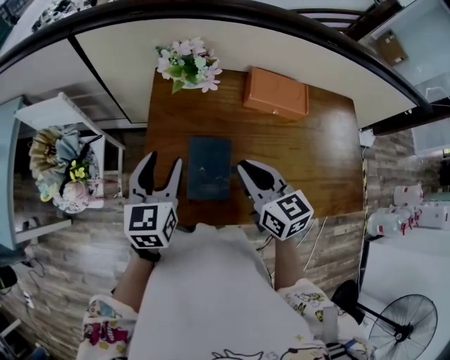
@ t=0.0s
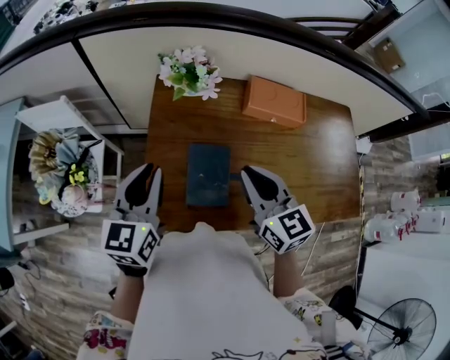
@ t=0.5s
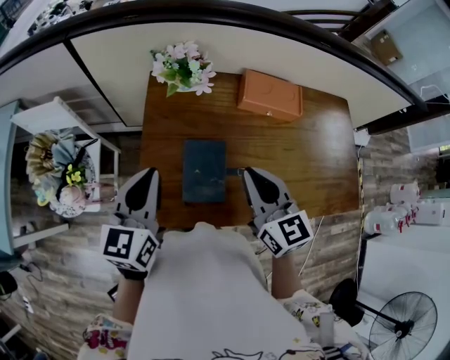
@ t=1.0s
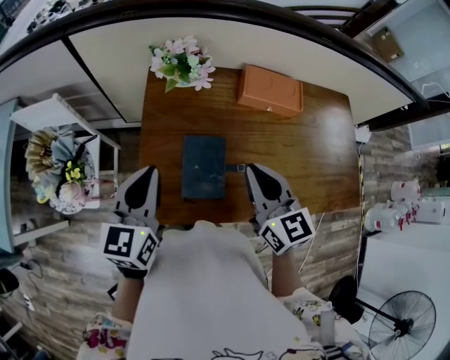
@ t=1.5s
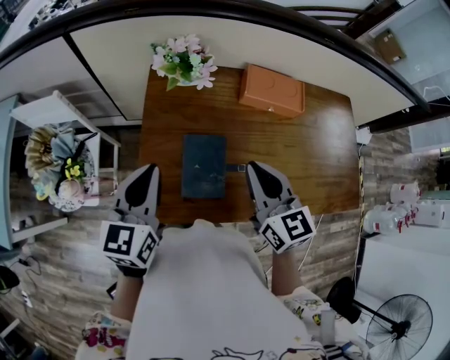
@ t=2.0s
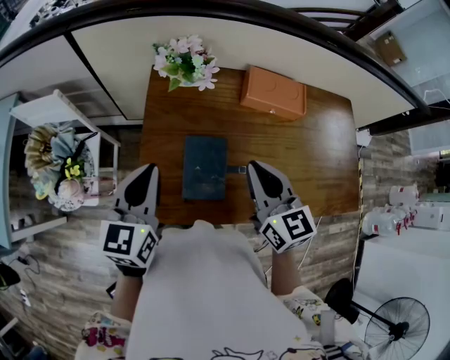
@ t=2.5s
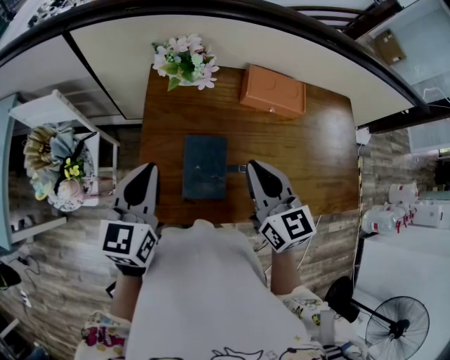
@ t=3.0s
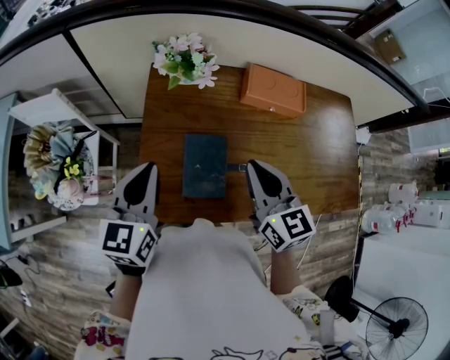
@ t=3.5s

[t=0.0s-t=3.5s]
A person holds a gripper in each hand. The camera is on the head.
t=0.0s to t=2.0s: The left gripper moves some 5 cm, and closes its fingers. Meanwhile the right gripper ends up some 5 cm from where it was.
t=2.0s to t=3.5s: Neither gripper changes place.

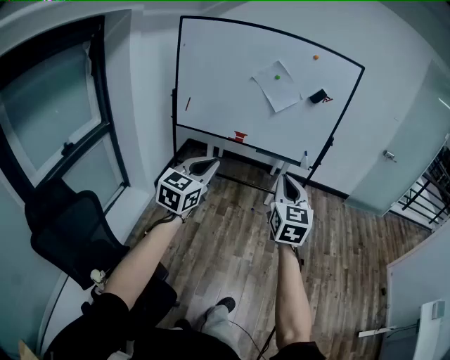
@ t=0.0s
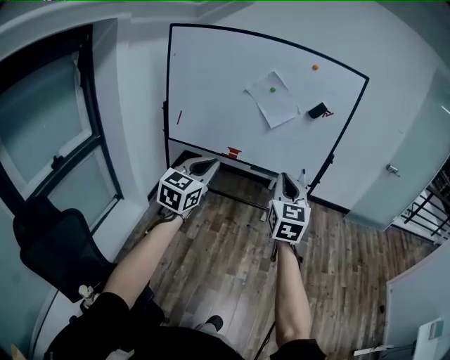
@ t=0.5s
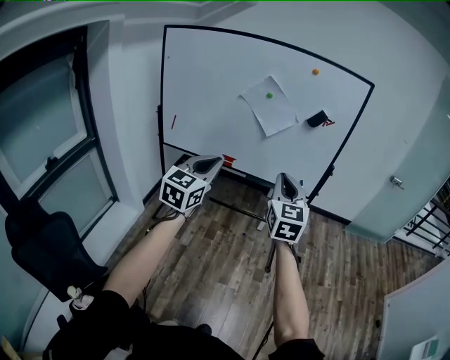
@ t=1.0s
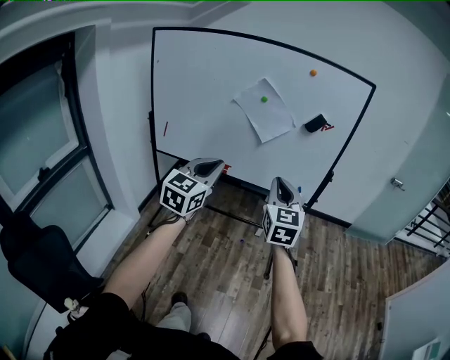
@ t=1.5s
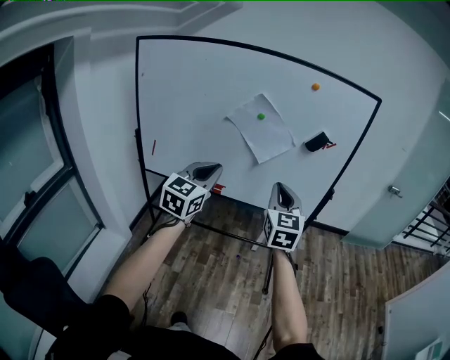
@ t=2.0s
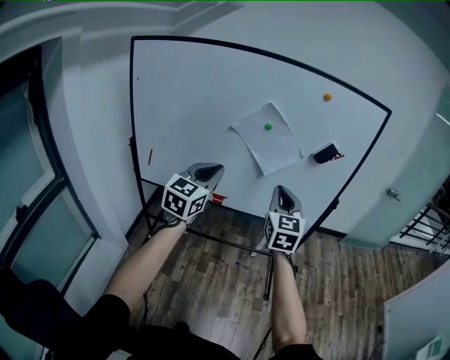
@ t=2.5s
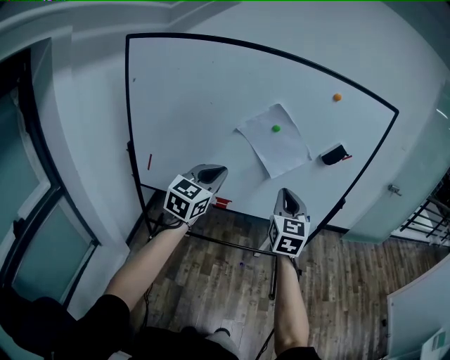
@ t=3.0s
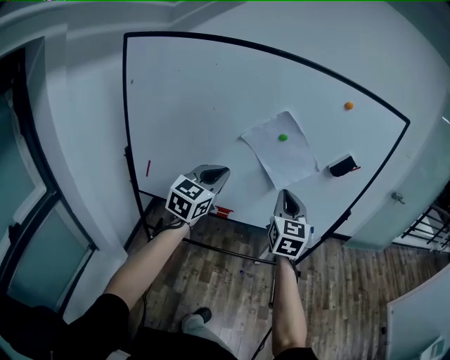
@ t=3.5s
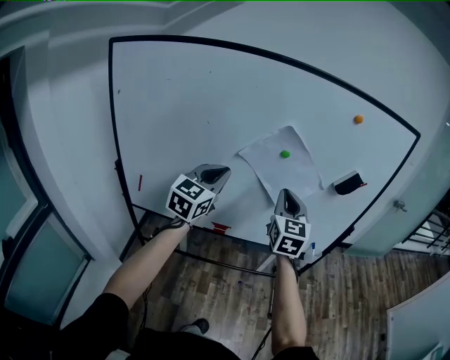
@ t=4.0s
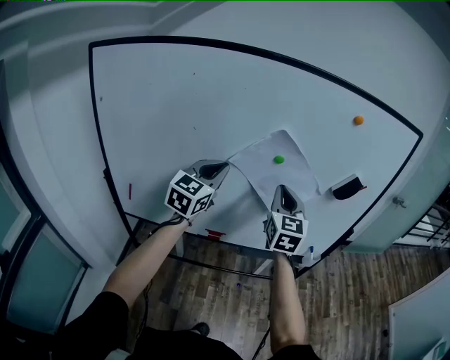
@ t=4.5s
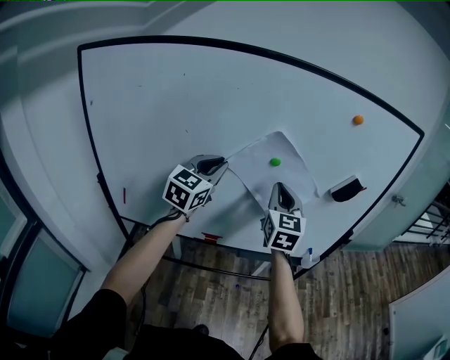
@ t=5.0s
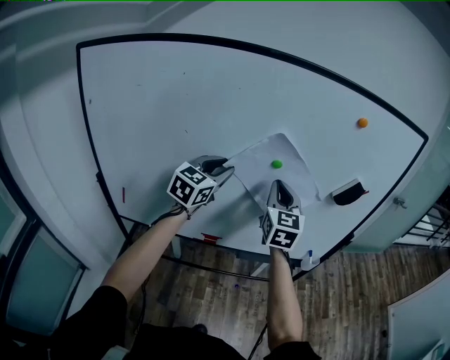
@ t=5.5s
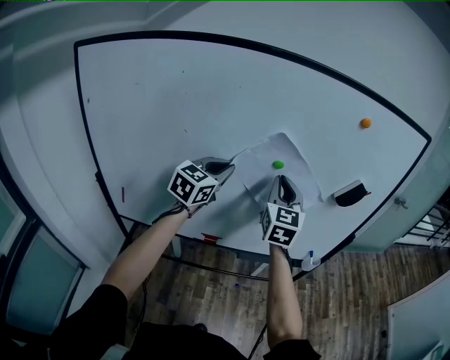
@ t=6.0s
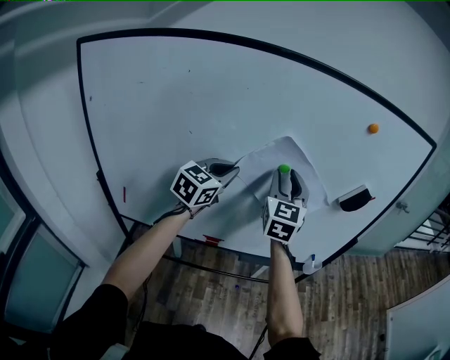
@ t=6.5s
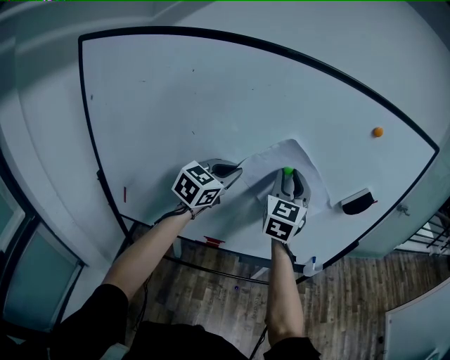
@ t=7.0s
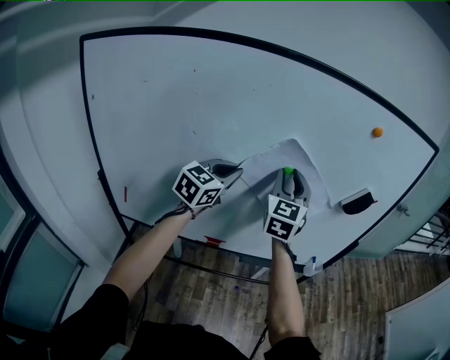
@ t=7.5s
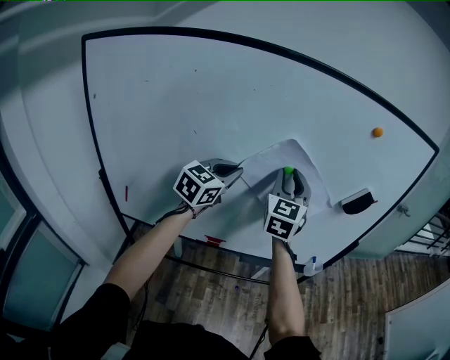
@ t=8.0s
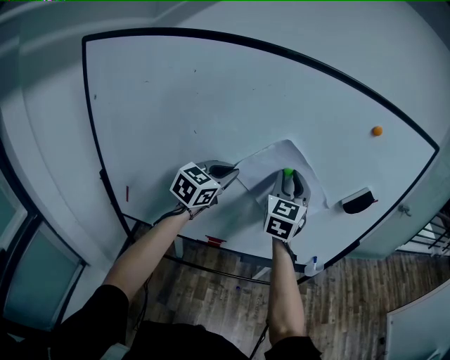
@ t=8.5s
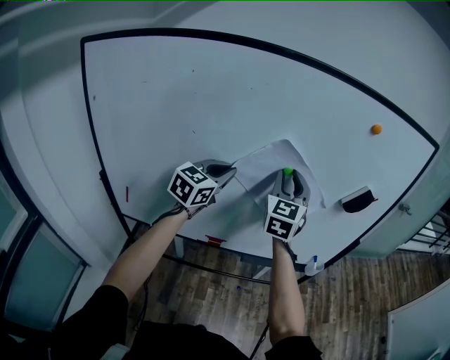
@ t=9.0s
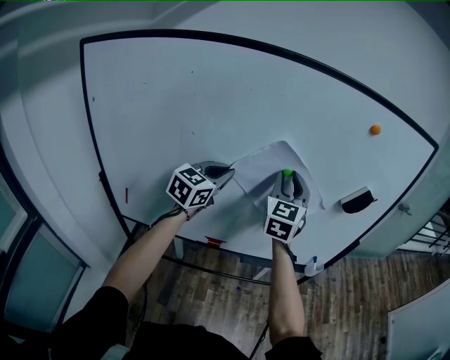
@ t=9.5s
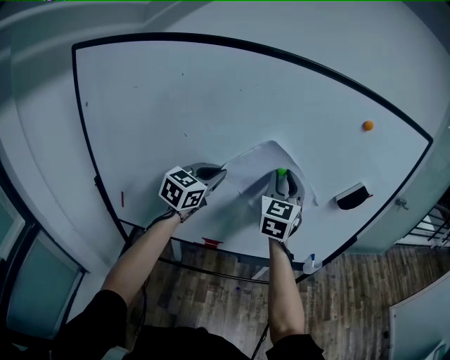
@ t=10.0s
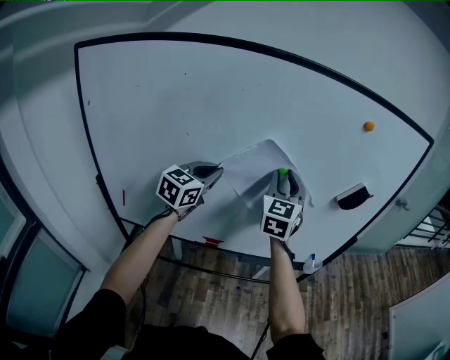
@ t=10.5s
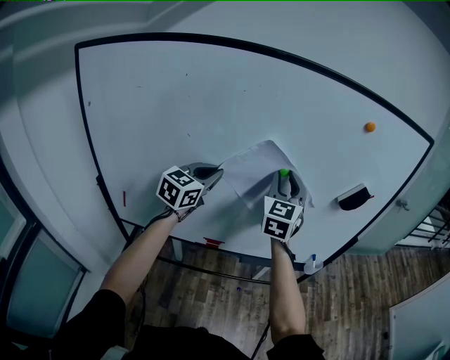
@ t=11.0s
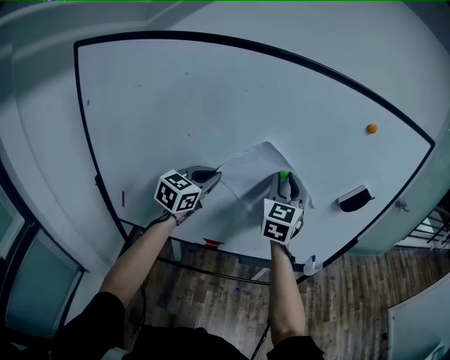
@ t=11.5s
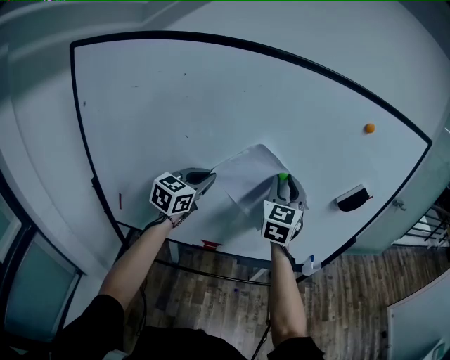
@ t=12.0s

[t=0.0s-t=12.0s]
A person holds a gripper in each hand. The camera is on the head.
t=0.0s to t=2.0s: The pair of grippers is taken forward, about 40 cm.
t=2.0s to t=4.0s: The two grippers go roughly 30 cm forward and to the left.
t=4.0s to t=6.0s: Both grippers travel together forward, about 10 cm. The left gripper opens, then closes once more.
t=6.0s to t=8.0s: The right gripper opens its fingers.
t=8.0s to t=10.0s: The grippers move only a little.
t=10.0s to t=12.0s: The grippers move only a little.

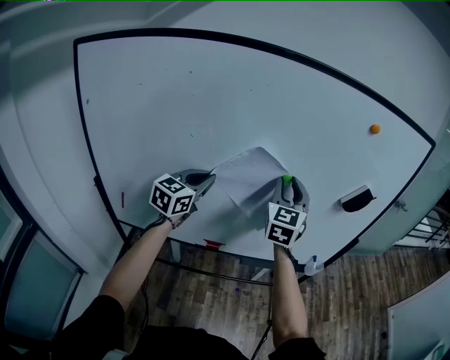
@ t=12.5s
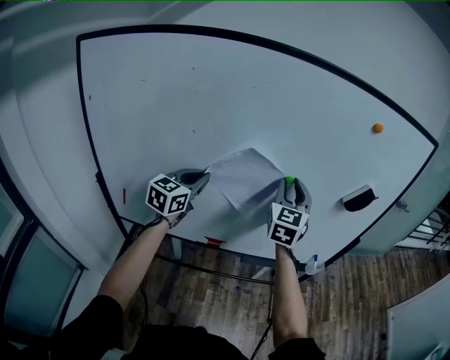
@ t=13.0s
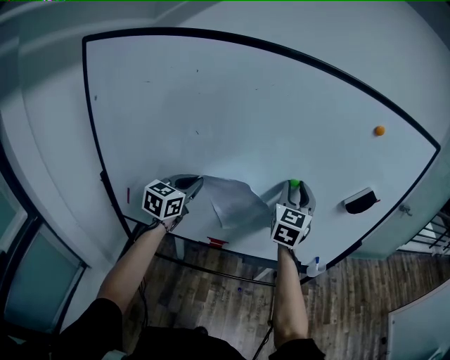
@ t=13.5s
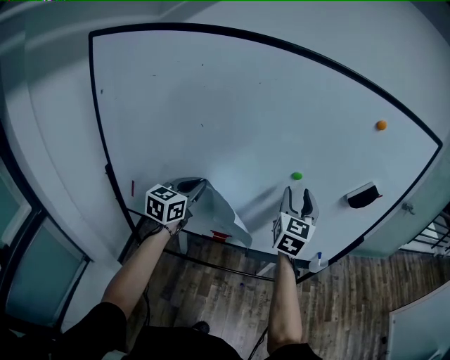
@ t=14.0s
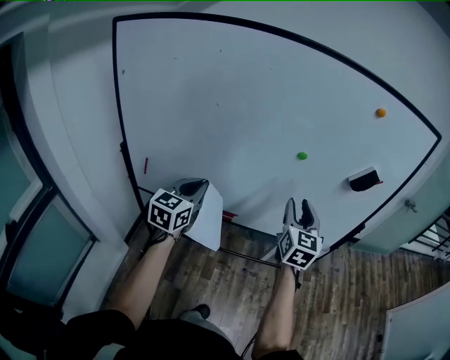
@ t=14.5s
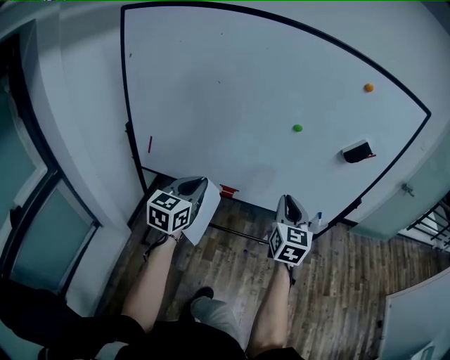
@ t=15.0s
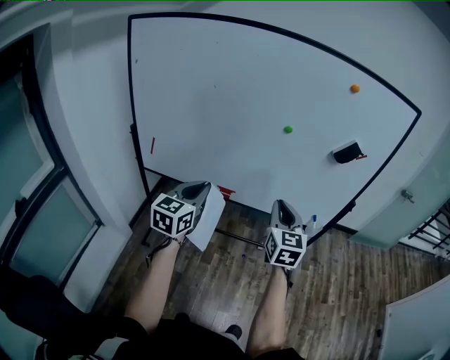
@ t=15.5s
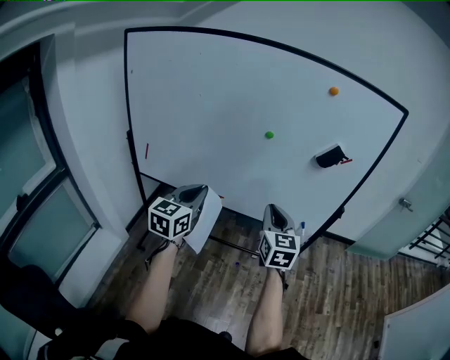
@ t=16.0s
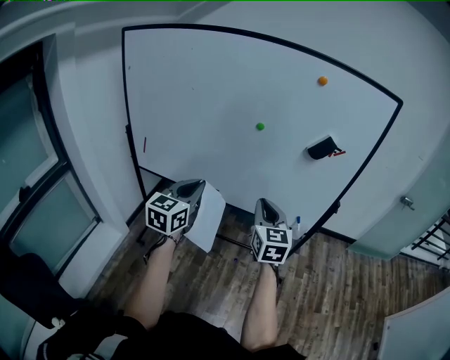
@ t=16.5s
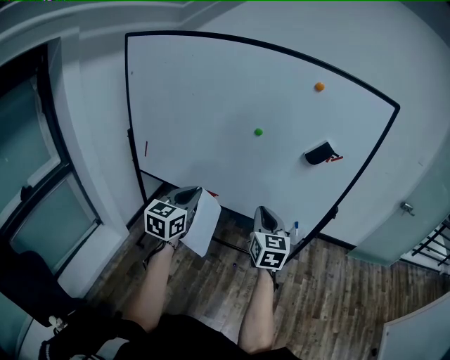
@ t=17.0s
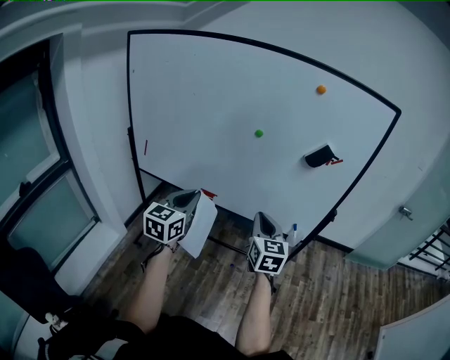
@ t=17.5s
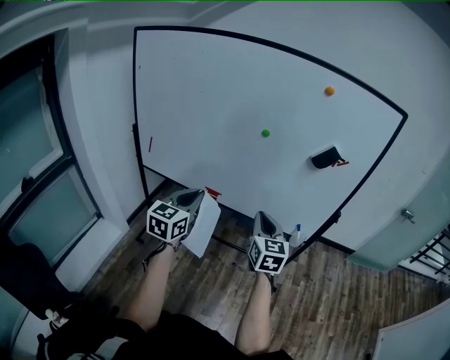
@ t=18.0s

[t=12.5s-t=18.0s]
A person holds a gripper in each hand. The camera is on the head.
t=12.5s to t=14.5s: The right gripper is displaced backward, downward and to the right by about 15 cm; the left gripper shifts some 15 cm backward.
t=14.5s to t=16.0s: The right gripper travels backward and to the right by approximately 15 cm, and closes its fingers. The left gripper heads to the right and backward, covering some 20 cm.
t=16.0s to t=18.0s: There are only small adjustments of the grippers.

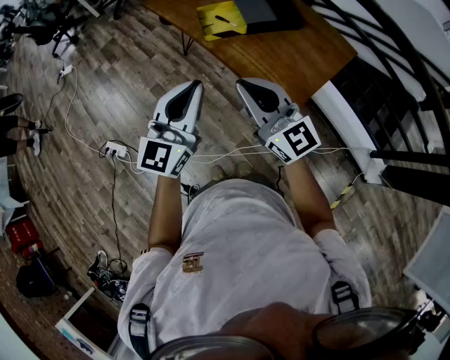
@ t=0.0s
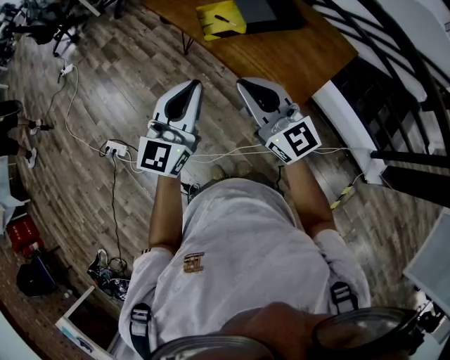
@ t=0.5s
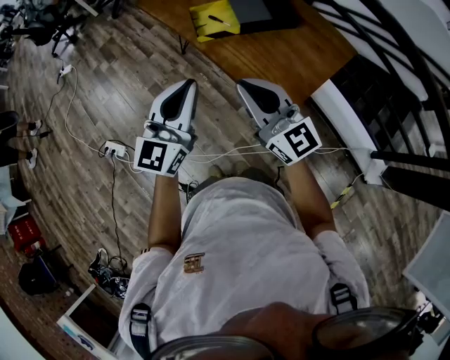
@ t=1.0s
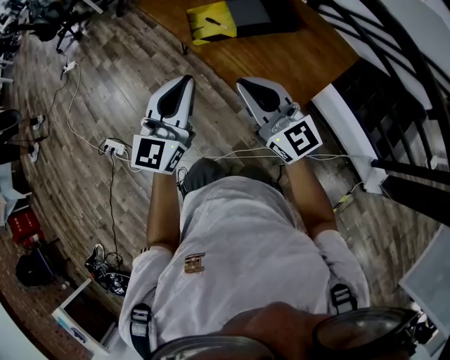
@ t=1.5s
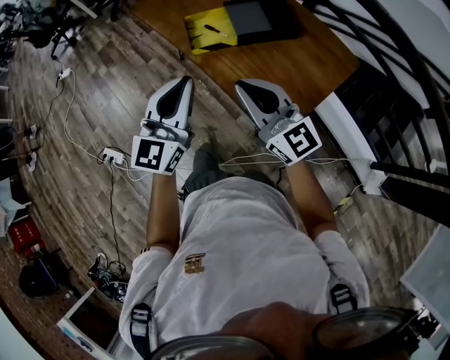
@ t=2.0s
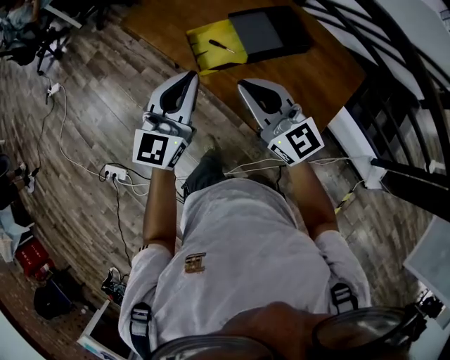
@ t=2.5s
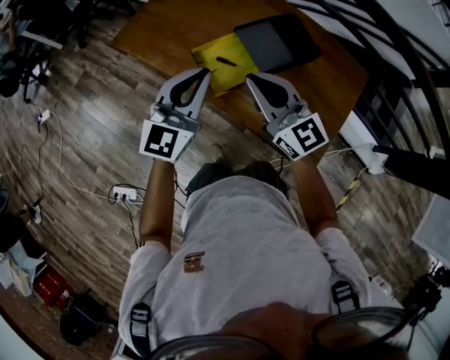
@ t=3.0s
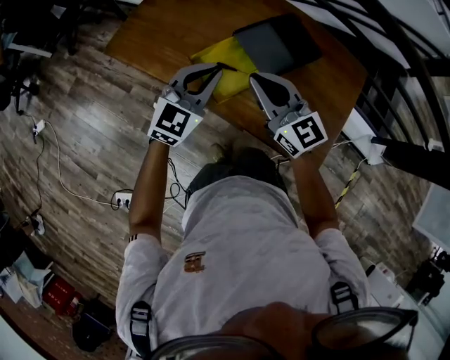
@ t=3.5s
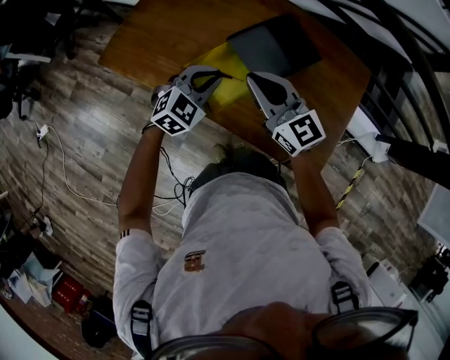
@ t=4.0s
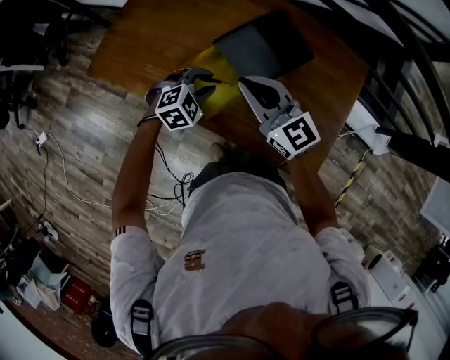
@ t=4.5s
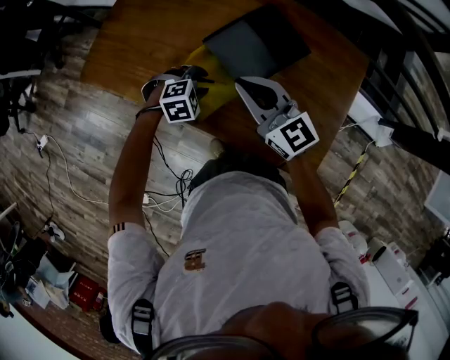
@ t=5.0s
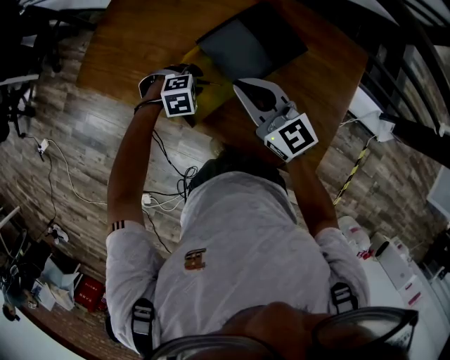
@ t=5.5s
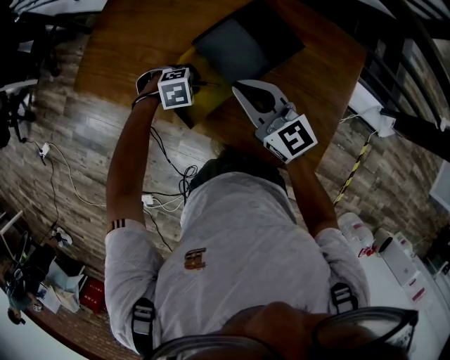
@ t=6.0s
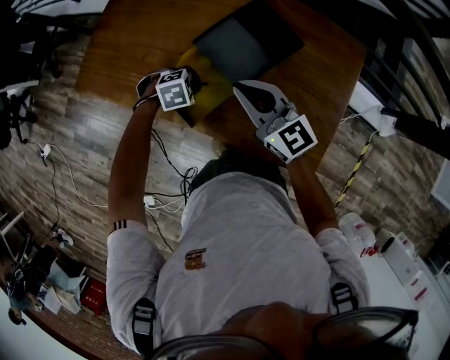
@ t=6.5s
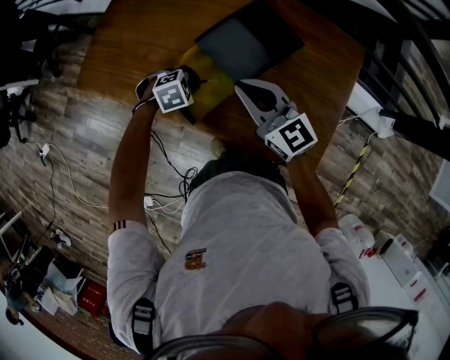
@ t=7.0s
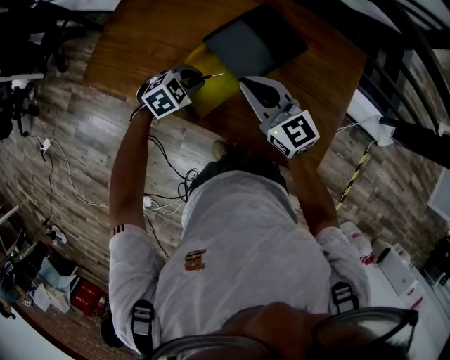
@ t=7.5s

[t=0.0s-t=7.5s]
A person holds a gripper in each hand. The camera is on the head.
t=0.0s to t=2.0s: The grippers both shift forward and to the right by some 15 cm.
t=2.0s to t=4.0s: Both grippers are carried approximately 40 cm. The left gripper points its fingers about 40 degrees further downward, while the right gripper rotates about 20 degrees.
t=4.0s to t=5.5s: The right gripper heads forward, covering about 5 cm, while the left gripper is displaced downward by about 15 cm, tips its fingers downward by some 40 degrees, and opens its fingers.
t=5.5s to t=7.5s: The left gripper shifts about 5 cm upward, changes its angle by approximately 30 degrees, and closes up.
